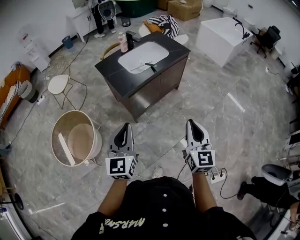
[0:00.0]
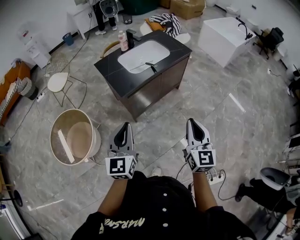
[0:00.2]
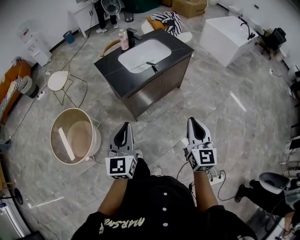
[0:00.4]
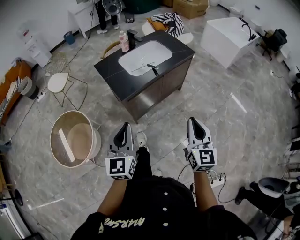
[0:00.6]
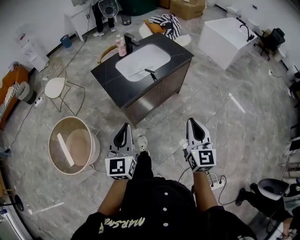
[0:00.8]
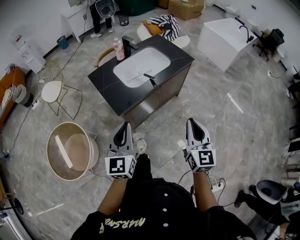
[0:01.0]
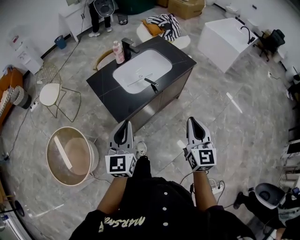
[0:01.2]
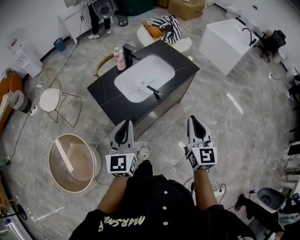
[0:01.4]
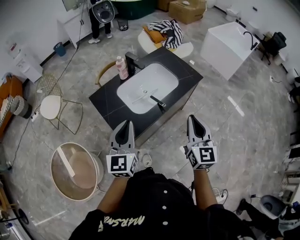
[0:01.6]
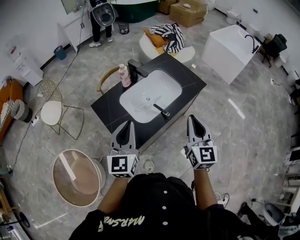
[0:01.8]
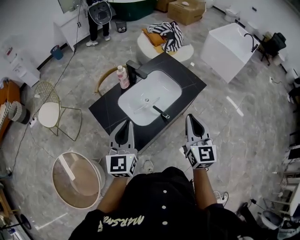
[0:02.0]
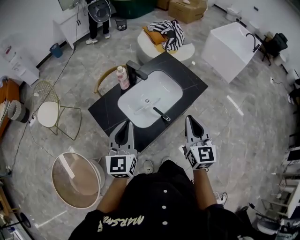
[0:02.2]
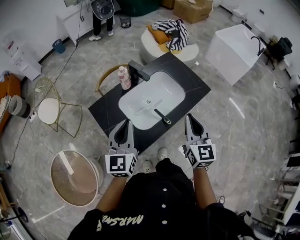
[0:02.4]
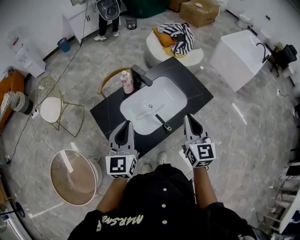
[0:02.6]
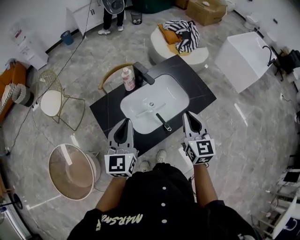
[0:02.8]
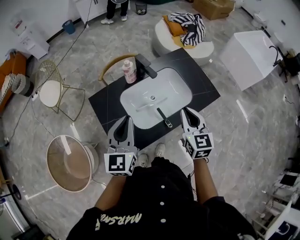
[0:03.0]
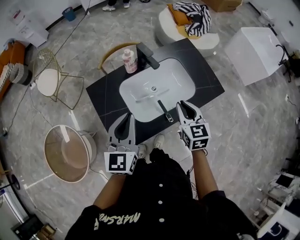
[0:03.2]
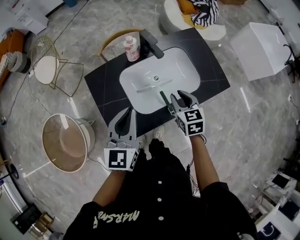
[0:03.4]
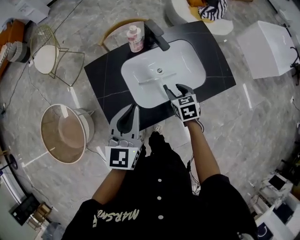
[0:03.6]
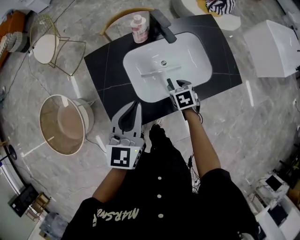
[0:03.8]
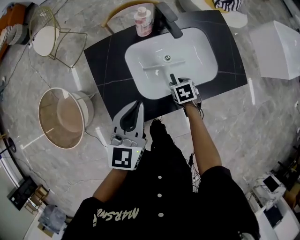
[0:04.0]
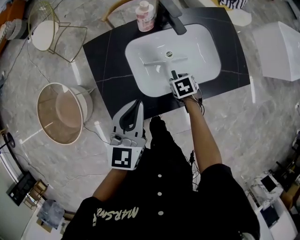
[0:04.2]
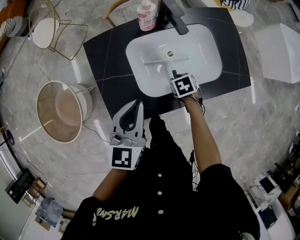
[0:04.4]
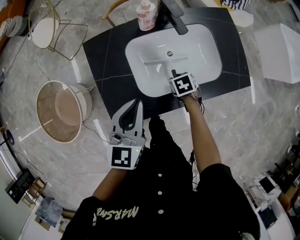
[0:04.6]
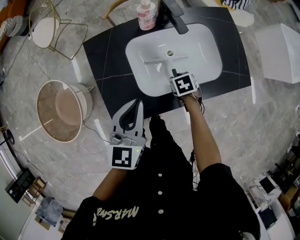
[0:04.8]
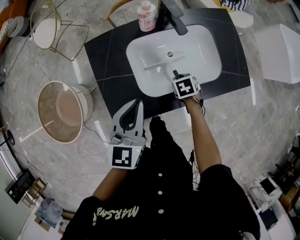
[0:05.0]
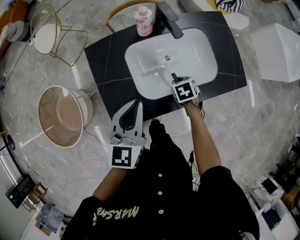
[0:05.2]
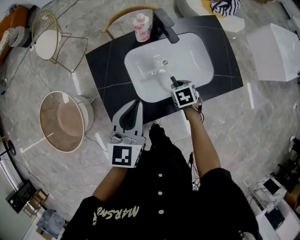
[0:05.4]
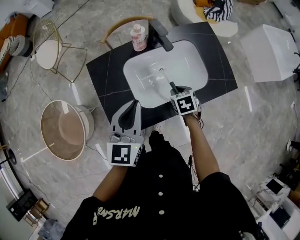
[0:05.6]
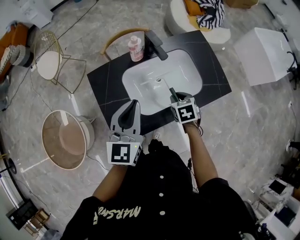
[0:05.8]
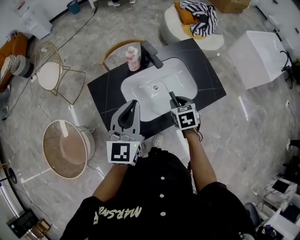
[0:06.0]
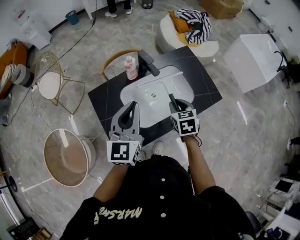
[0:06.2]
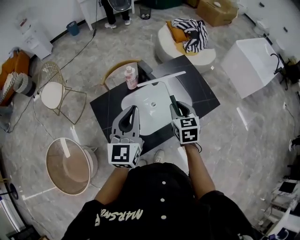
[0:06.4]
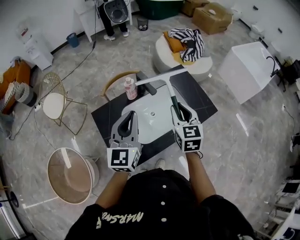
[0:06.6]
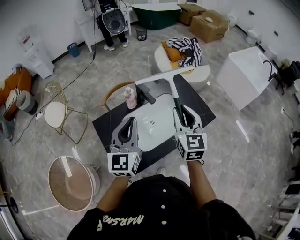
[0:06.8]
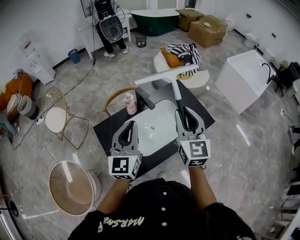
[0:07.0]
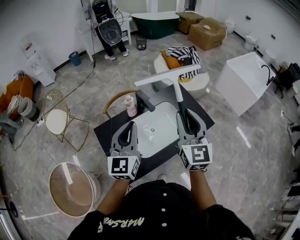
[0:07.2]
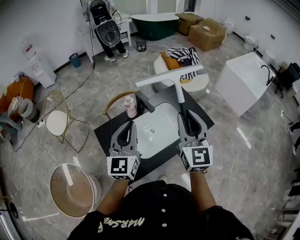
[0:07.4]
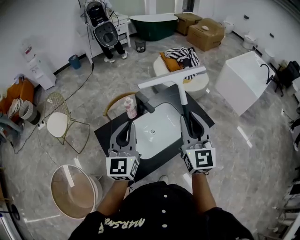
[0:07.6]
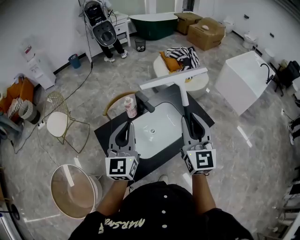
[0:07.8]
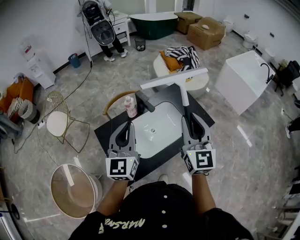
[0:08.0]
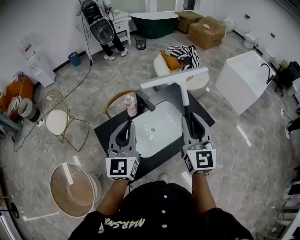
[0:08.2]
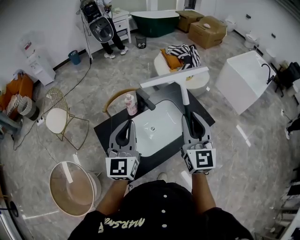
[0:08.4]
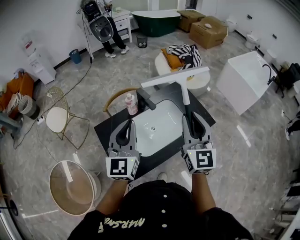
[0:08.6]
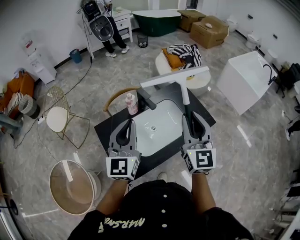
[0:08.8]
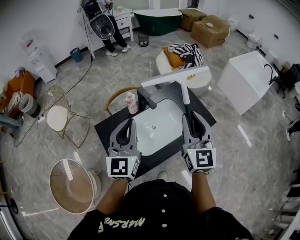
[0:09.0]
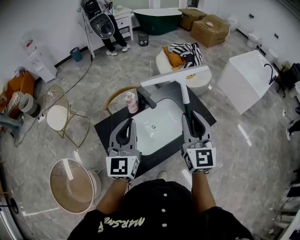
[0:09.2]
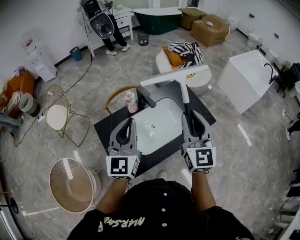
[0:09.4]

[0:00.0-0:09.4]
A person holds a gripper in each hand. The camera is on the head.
0:00.0 to 0:01.6: The grippers both shift forward by some 40 cm.
0:01.6 to 0:03.2: The left gripper shifts approximately 20 cm forward. Meanwhile the right gripper goes roughly 30 cm forward and downward, and rotates some 30 degrees.
0:03.2 to 0:04.8: The left gripper is displaced downward by approximately 10 cm, while the right gripper heads downward, covering about 25 cm, points its fingers approximately 50 degrees further downward, and opens its fingers.
0:04.8 to 0:06.2: The right gripper is displaced upward by some 25 cm, and rotates approximately 40 degrees. The left gripper moves upward, approximately 15 cm.
0:06.2 to 0:07.8: The right gripper goes approximately 25 cm upward, and tilts its fingers roughly 50 degrees upward. Meanwhile the left gripper moves upward, roughly 10 cm.
0:07.8 to 0:09.4: The grippers stay close to where they were, moving slightly.

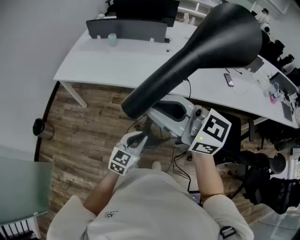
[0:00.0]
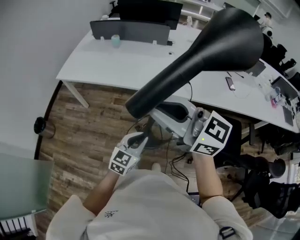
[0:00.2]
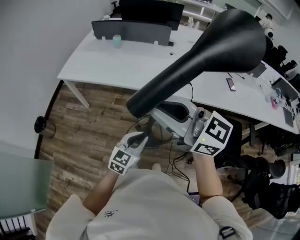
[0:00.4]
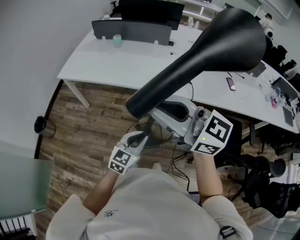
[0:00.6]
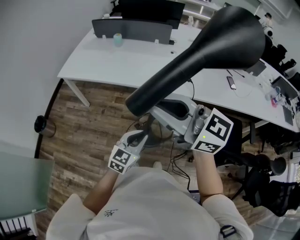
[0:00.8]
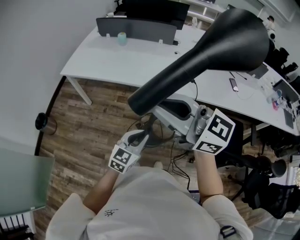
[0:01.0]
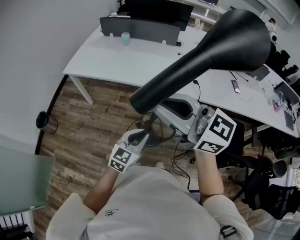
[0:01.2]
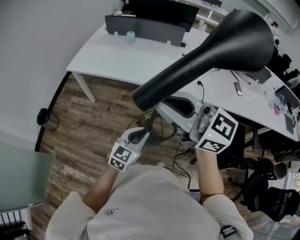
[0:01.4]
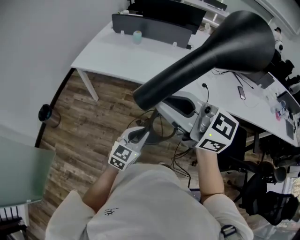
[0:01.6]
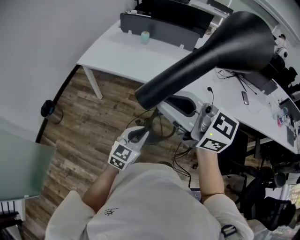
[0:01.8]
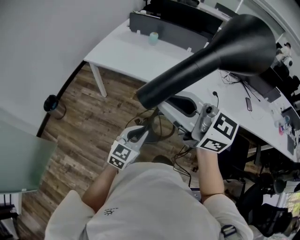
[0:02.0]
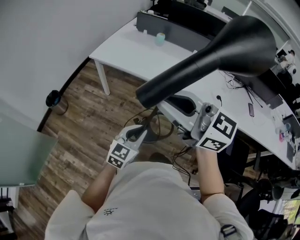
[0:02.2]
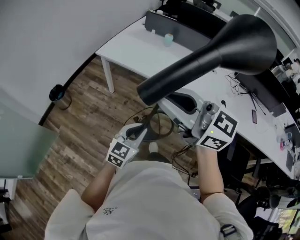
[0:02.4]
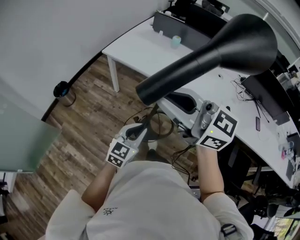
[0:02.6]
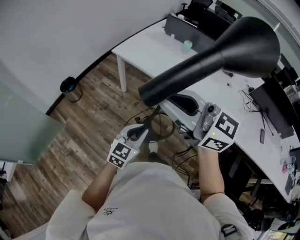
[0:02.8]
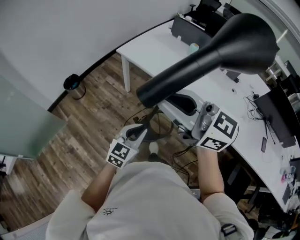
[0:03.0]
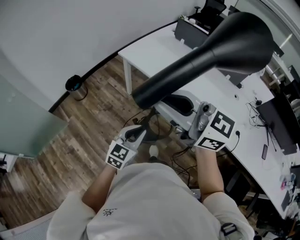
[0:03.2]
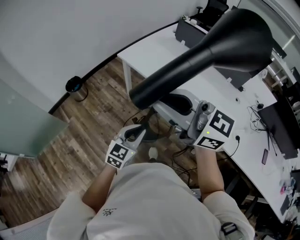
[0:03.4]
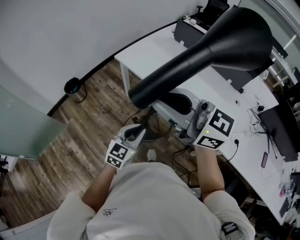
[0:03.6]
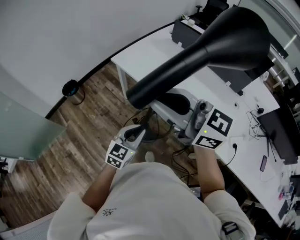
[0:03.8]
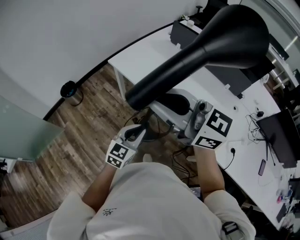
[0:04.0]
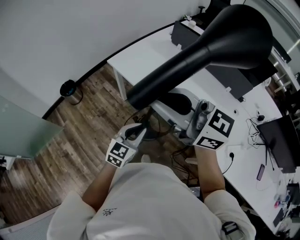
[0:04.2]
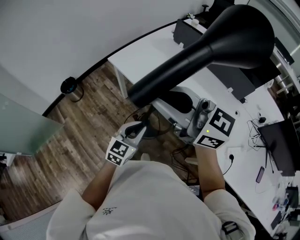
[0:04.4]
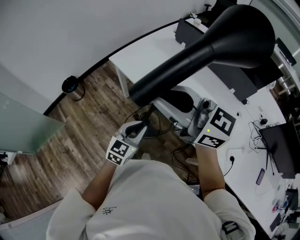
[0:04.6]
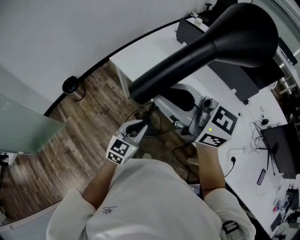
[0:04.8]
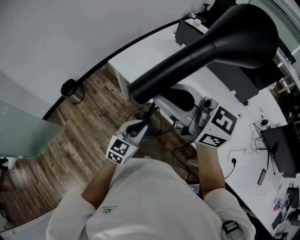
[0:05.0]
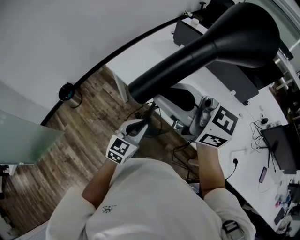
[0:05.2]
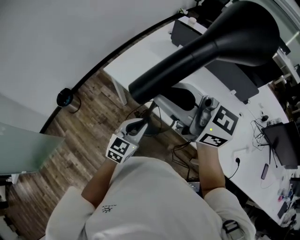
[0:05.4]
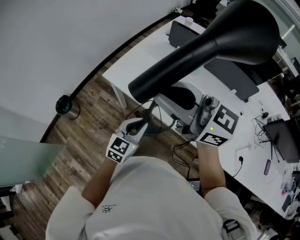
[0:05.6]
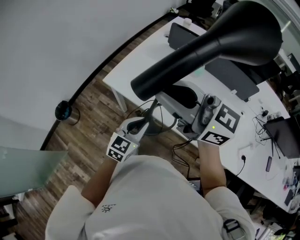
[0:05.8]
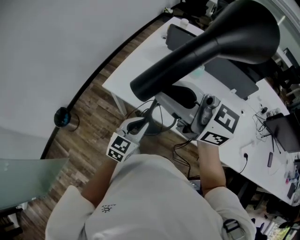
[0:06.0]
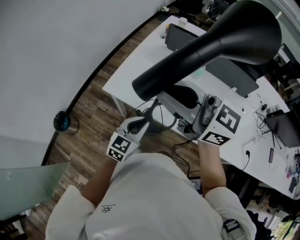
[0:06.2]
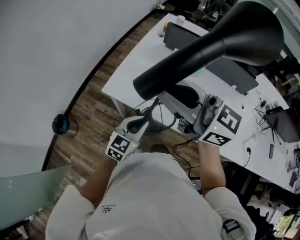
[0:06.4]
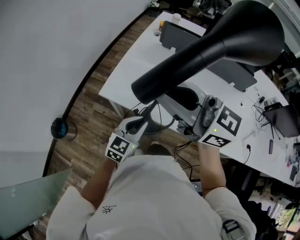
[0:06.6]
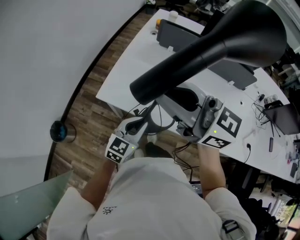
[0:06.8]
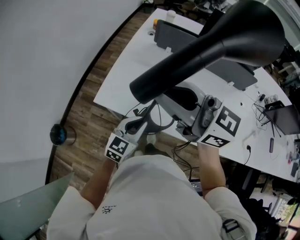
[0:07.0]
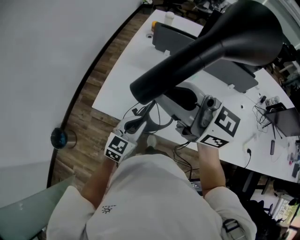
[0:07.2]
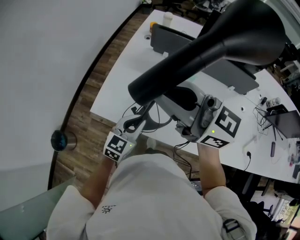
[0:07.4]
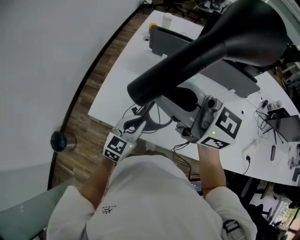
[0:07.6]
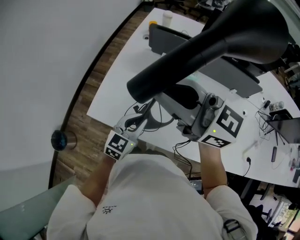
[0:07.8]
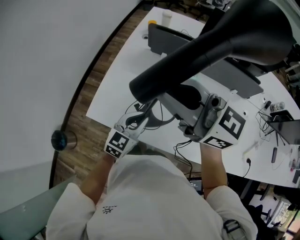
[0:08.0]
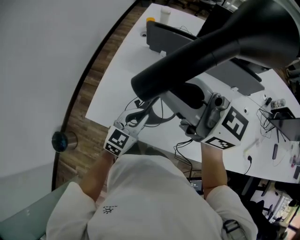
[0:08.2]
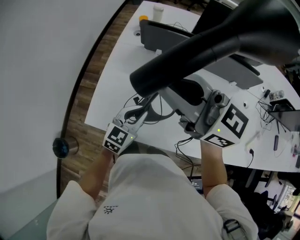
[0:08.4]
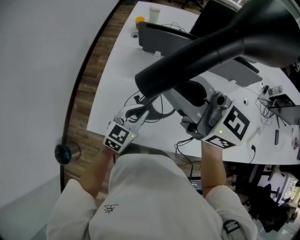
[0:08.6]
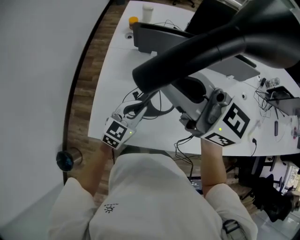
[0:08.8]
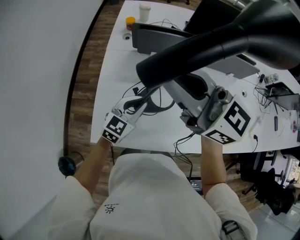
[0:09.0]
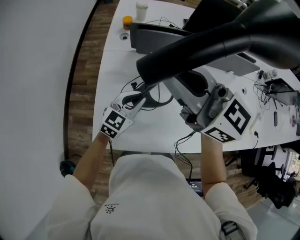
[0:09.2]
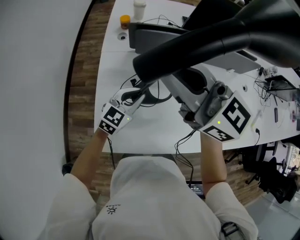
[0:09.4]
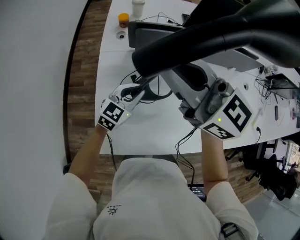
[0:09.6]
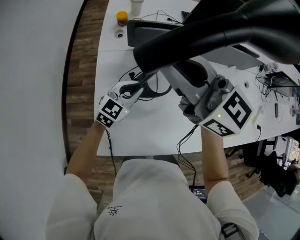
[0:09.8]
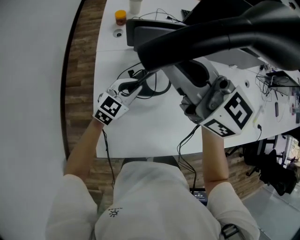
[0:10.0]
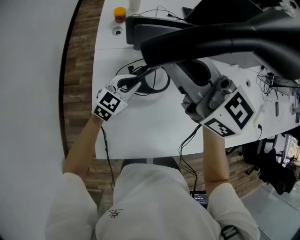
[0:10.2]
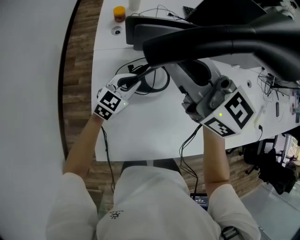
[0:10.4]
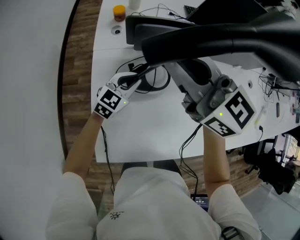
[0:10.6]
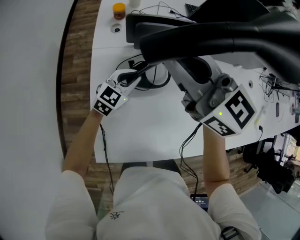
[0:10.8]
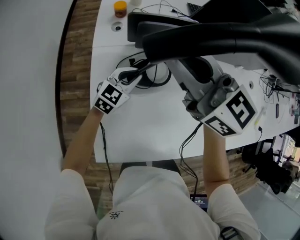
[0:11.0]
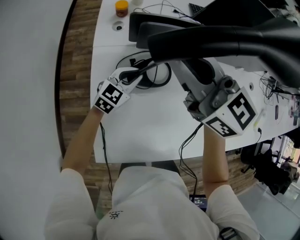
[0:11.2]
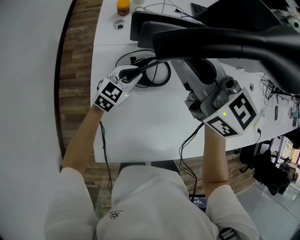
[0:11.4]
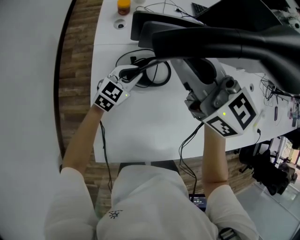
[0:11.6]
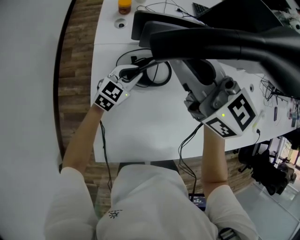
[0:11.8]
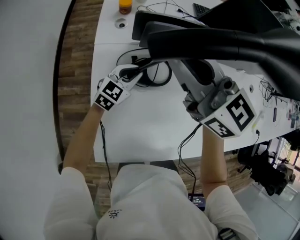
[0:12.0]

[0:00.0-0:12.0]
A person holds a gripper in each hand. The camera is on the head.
0:00.0 to 0:01.6: The grippers both shift to the left by some 10 cm.
0:01.6 to 0:03.0: The right gripper shifts roughly 20 cm forward and to the left, and rotates about 20 degrees, while the left gripper is displaced to the left and forward by approximately 20 cm, and changes its angle by some 20 degrees.
0:03.0 to 0:04.4: The grippers both shift forward and to the right by roughly 25 cm.
0:04.4 to 0:06.0: The grippers both shift forward by approximately 20 cm.
0:06.0 to 0:07.6: The grippers both shift forward by about 20 cm.
0:07.6 to 0:09.0: The two grippers go some 20 cm forward. The right gripper turns by some 20 degrees. Meanwhile the left gripper swivels approximately 20 degrees.
0:09.0 to 0:10.4: Both grippers move forward and downward, some 15 cm.
0:10.4 to 0:12.0: The right gripper changes place by roughly 5 cm, while the left gripper shifts by about 5 cm.

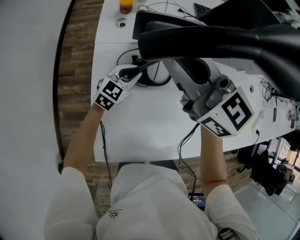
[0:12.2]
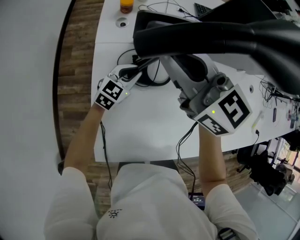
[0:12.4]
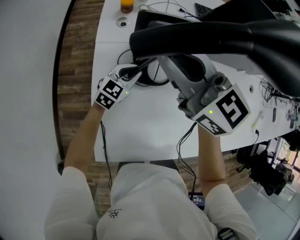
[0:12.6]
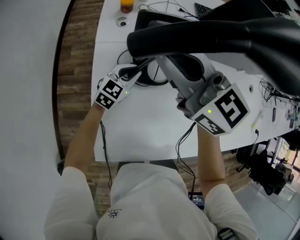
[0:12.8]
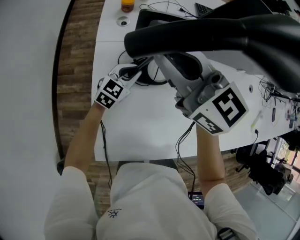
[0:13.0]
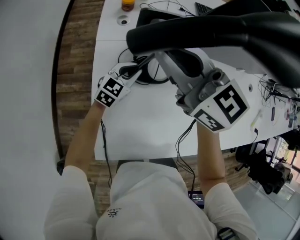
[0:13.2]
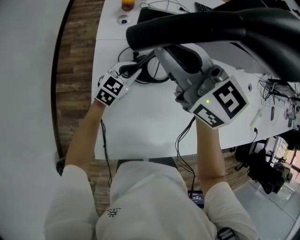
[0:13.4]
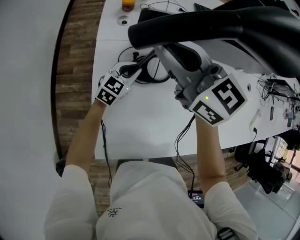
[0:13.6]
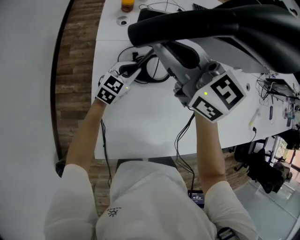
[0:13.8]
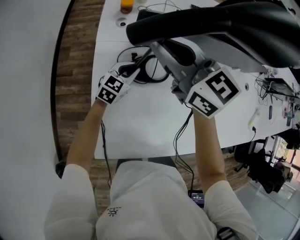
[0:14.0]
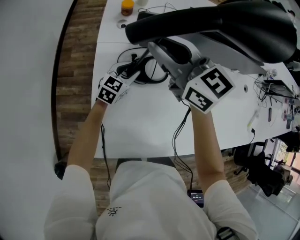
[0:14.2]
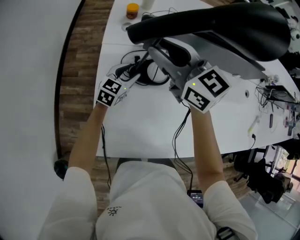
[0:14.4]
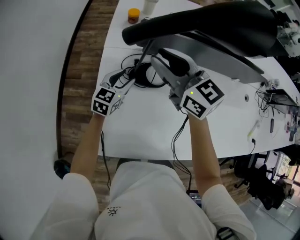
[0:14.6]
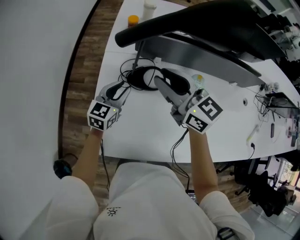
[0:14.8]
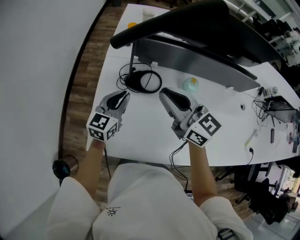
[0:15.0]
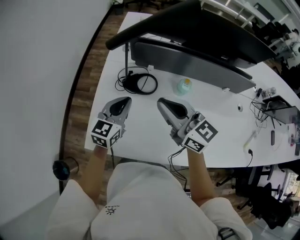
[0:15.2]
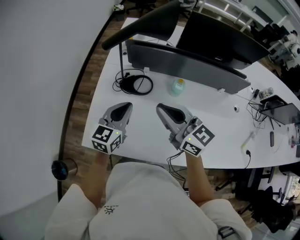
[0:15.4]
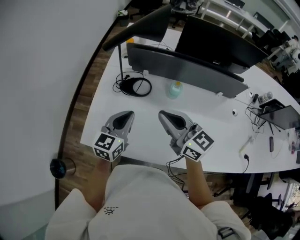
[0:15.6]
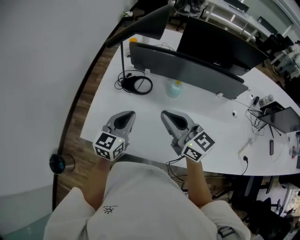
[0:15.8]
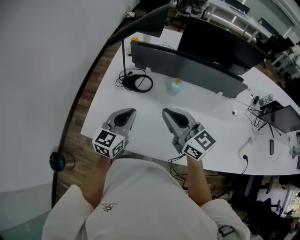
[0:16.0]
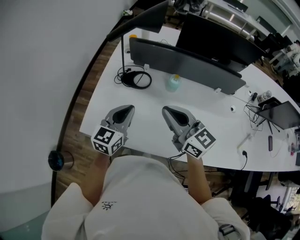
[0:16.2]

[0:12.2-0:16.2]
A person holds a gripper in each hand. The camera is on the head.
0:12.2 to 0:13.6: The grippers stay close to where they were, moving slightly.
0:13.6 to 0:14.8: The left gripper shifts roughly 15 cm upward and backward, and swivels some 20 degrees; the right gripper moves backward and to the right, some 10 cm.
0:14.8 to 0:16.2: The left gripper is displaced backward, upward and to the right by about 30 cm, and closes up. Meanwhile the right gripper goes about 30 cm backward and to the right, and closes.
